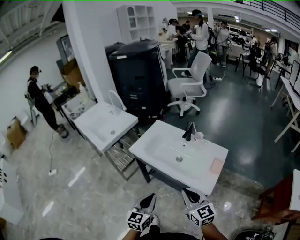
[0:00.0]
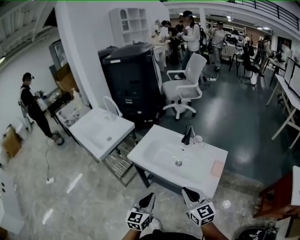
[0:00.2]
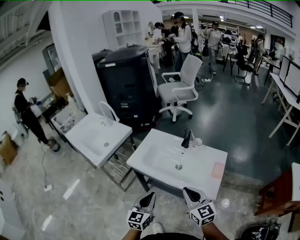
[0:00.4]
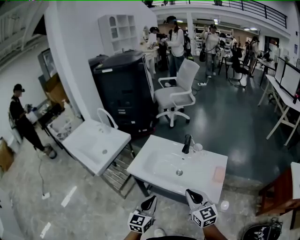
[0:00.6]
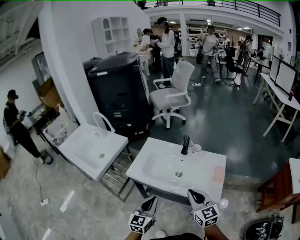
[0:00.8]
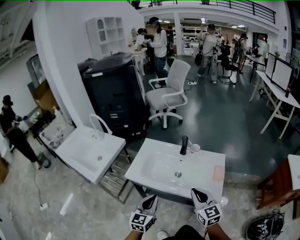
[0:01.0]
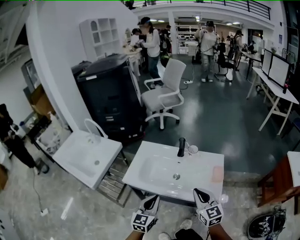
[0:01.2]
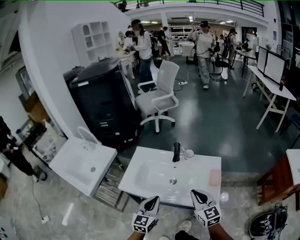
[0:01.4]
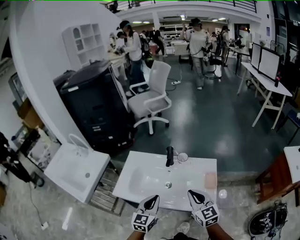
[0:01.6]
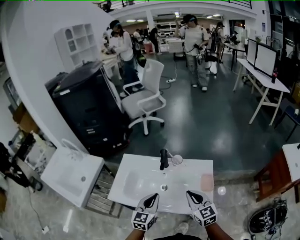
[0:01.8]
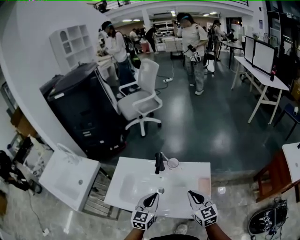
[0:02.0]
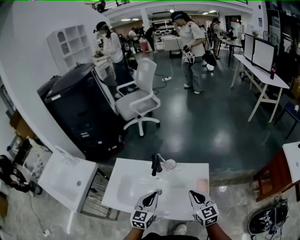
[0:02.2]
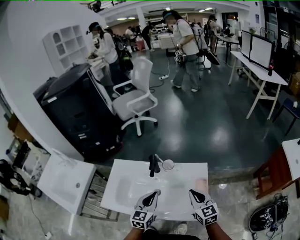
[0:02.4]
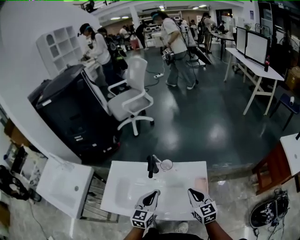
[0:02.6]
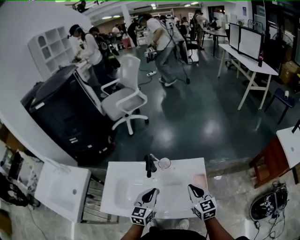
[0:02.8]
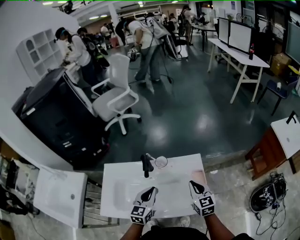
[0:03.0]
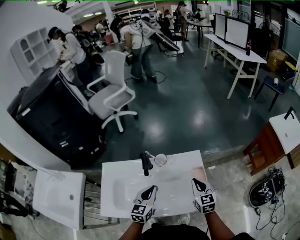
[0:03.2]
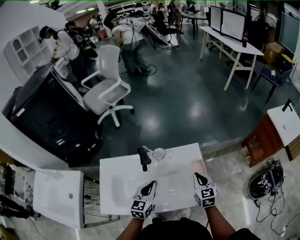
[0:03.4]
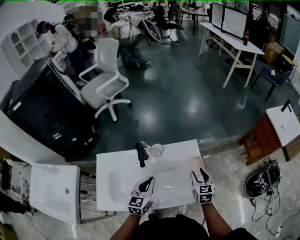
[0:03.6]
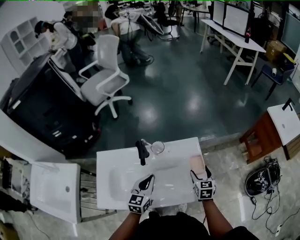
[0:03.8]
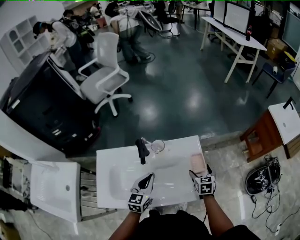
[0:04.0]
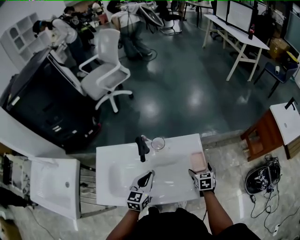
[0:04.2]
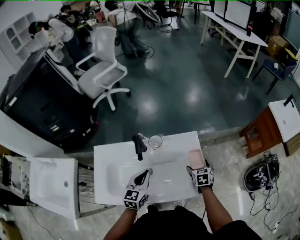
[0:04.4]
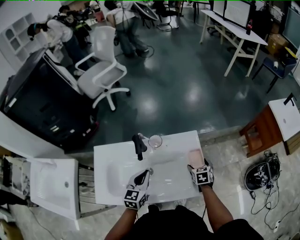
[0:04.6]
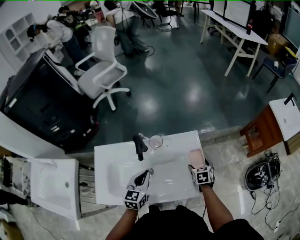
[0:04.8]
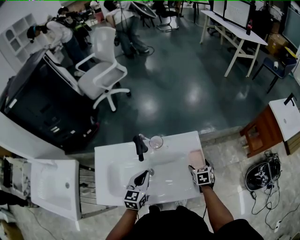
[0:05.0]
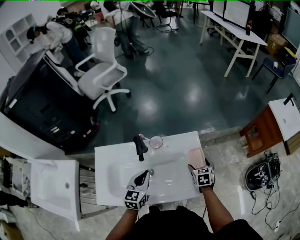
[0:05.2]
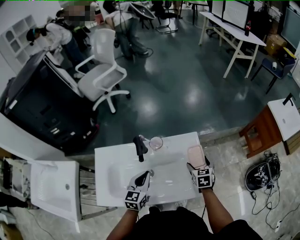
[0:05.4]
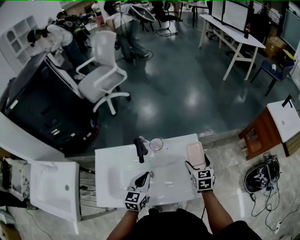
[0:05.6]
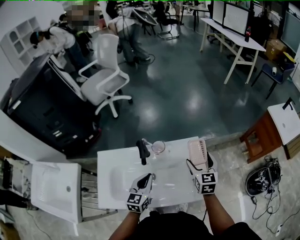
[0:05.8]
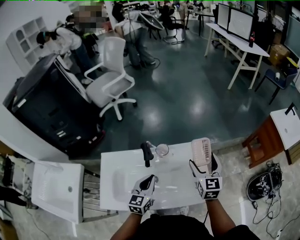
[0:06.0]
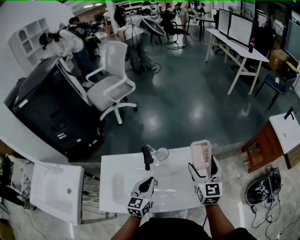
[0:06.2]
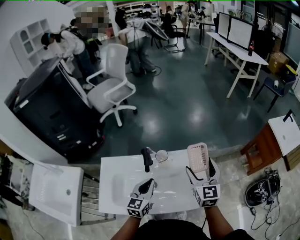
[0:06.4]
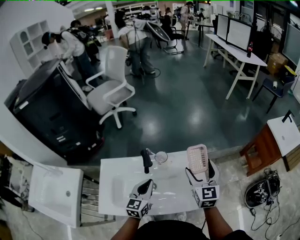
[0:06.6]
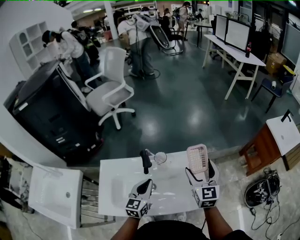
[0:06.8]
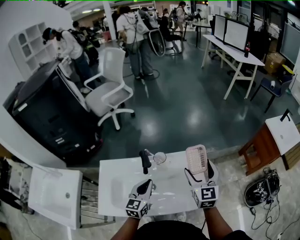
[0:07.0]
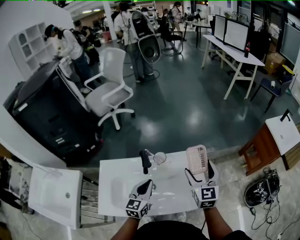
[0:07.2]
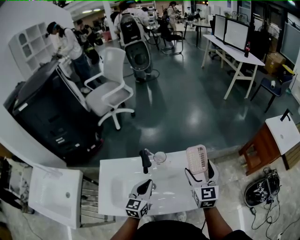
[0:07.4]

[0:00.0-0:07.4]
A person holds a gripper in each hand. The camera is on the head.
0:00.0 to 0:01.4: The two grippers go about 15 cm forward. The left gripper turns by about 20 degrees. Meanwhile the right gripper turns by roughly 20 degrees.
0:01.4 to 0:03.0: The right gripper shifts some 20 cm forward, to the right and downward, and changes its angle by approximately 20 degrees. The left gripper shifts about 20 cm forward and to the right.
0:03.0 to 0:04.4: The right gripper is displaced downward and to the right by some 20 cm, swivels approximately 30 degrees, and opens its fingers.
0:04.4 to 0:06.0: The right gripper moves upward, roughly 25 cm, and tilts its fingers roughly 40 degrees upward.
0:06.0 to 0:07.4: The grippers move only a little.

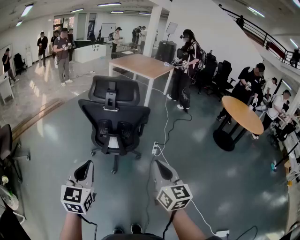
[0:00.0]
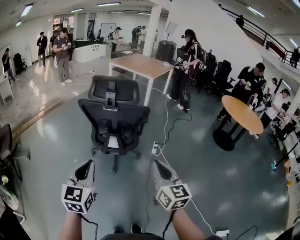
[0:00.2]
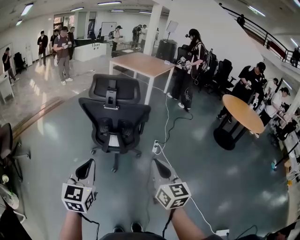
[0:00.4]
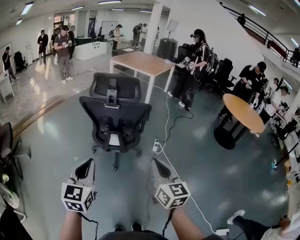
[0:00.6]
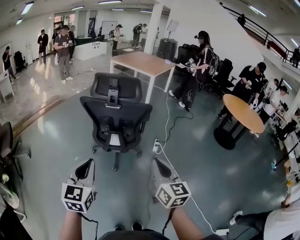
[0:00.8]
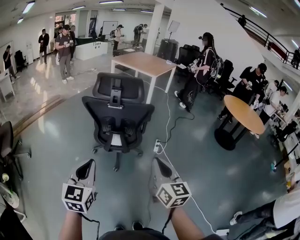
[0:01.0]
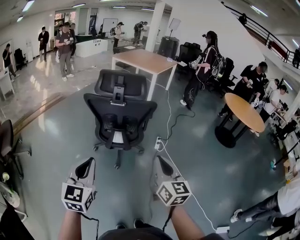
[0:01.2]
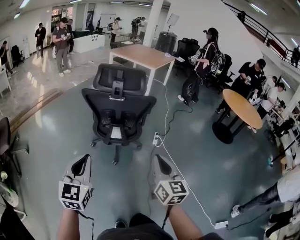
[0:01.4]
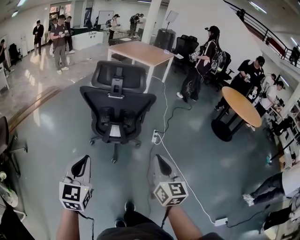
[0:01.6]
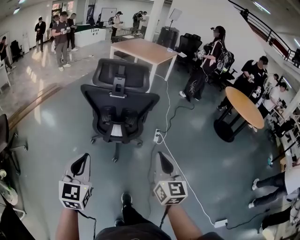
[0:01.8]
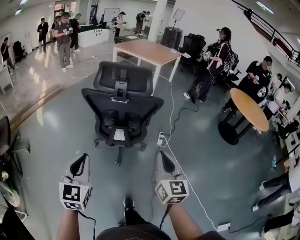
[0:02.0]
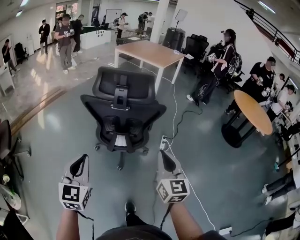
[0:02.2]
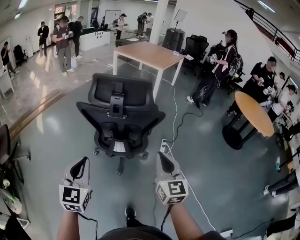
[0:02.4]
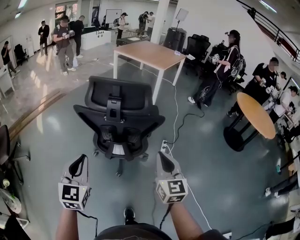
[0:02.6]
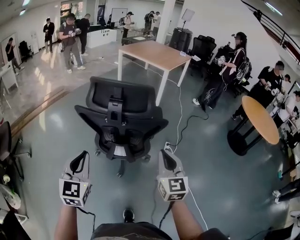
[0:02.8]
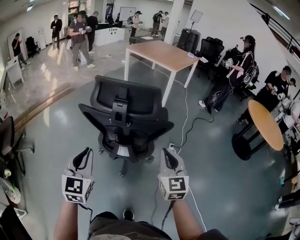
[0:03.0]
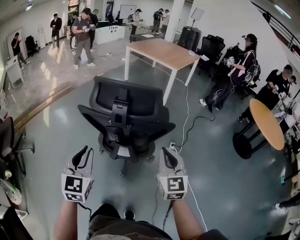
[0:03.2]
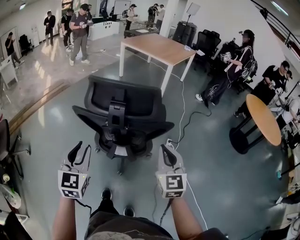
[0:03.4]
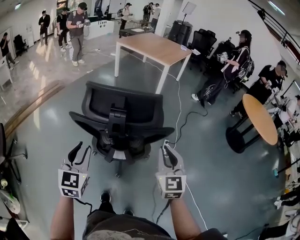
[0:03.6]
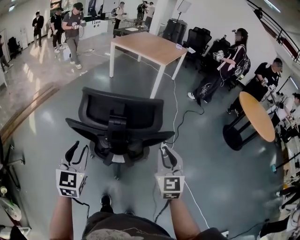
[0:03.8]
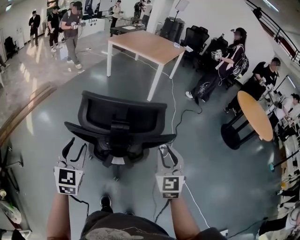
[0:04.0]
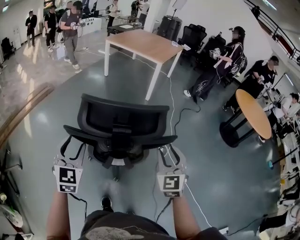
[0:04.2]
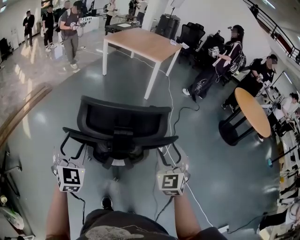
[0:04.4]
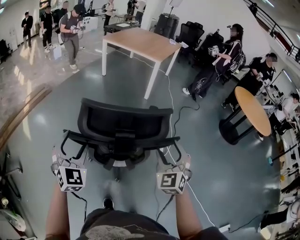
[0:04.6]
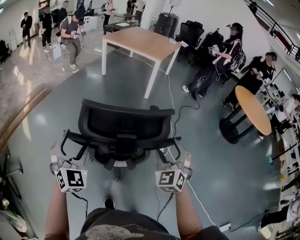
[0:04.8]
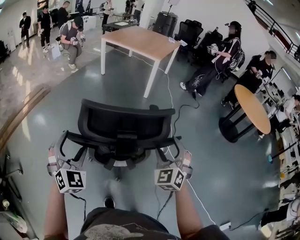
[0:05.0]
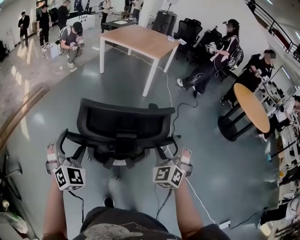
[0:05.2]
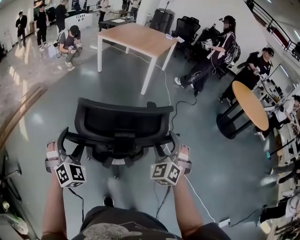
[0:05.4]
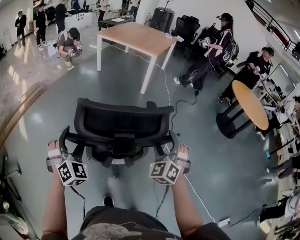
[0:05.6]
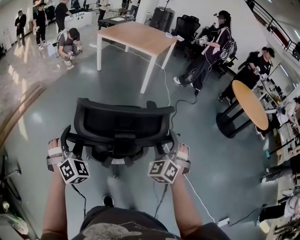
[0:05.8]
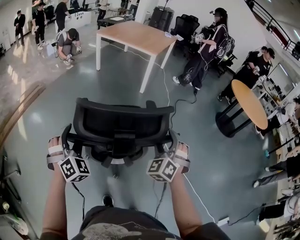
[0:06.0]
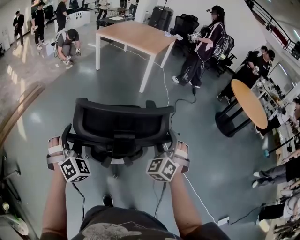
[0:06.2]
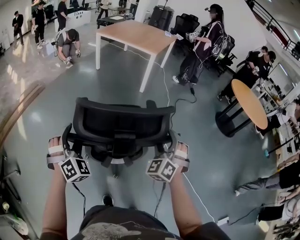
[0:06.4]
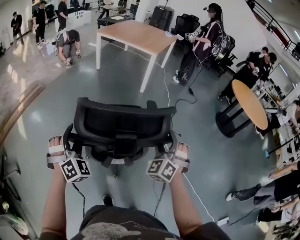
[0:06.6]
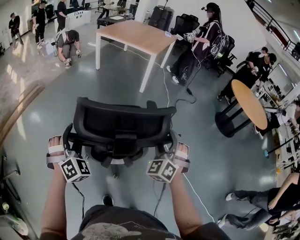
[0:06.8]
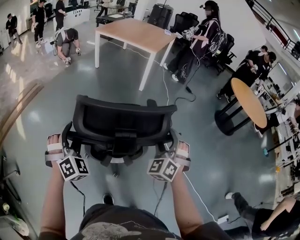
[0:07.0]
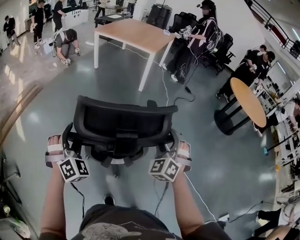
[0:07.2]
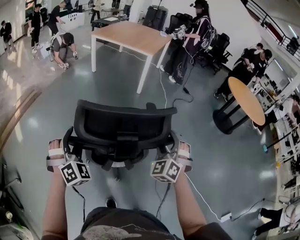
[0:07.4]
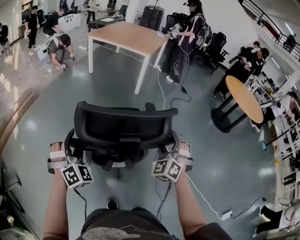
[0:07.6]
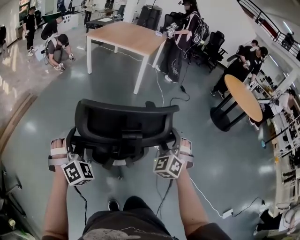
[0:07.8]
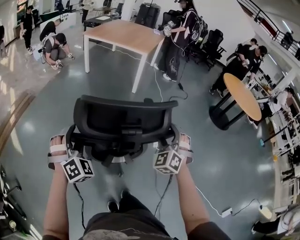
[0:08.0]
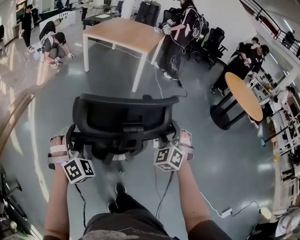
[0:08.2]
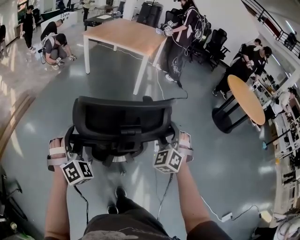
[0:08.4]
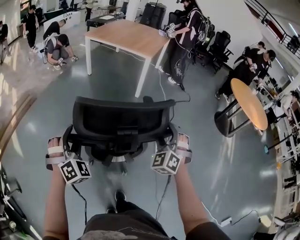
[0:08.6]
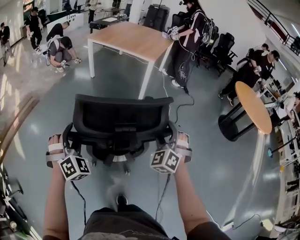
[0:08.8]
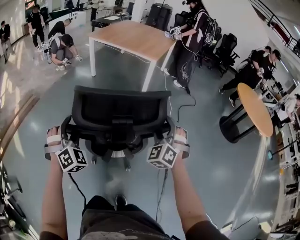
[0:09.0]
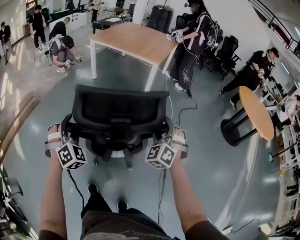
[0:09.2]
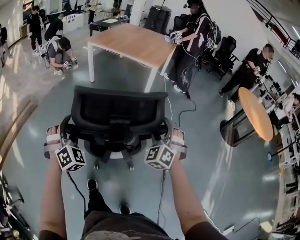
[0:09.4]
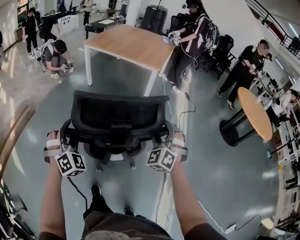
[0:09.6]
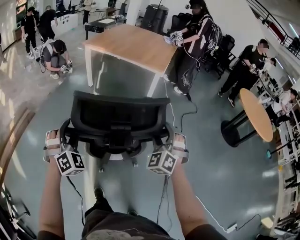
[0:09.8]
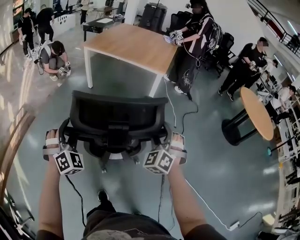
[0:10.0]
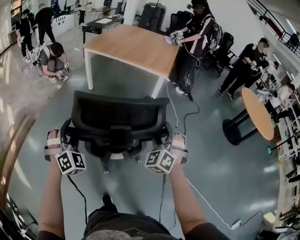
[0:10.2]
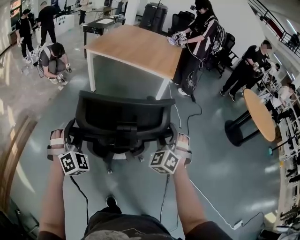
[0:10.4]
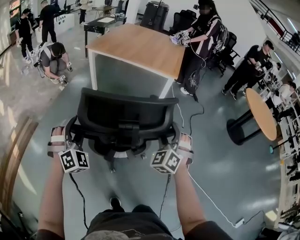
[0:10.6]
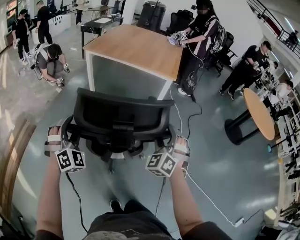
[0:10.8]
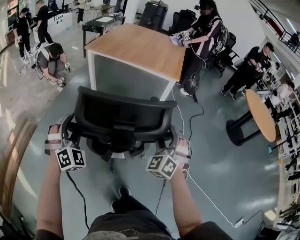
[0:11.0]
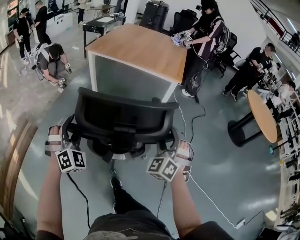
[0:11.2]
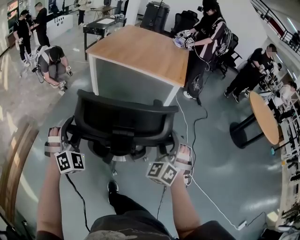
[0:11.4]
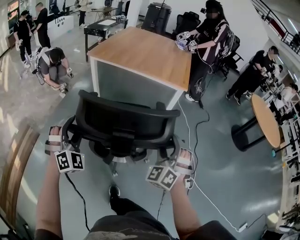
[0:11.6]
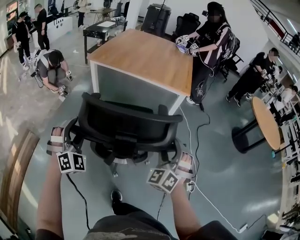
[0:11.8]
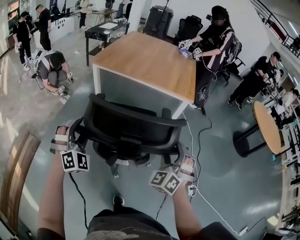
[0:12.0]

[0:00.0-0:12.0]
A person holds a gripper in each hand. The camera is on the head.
0:00.0 to 0:01.6: The left gripper changes place by approximately 5 cm.
0:01.6 to 0:03.0: The two grippers go some 25 cm forward.
0:03.0 to 0:04.4: The left gripper travels forward by roughly 20 cm, and opens up; the right gripper is displaced forward by approximately 10 cm, changes its angle by about 30 degrees, and opens.
0:04.4 to 0:06.0: Both grippers move forward, roughly 5 cm. The left gripper turns by roughly 30 degrees. The right gripper swivels approximately 30 degrees.
0:06.0 to 0:07.6: The grippers move only a little.
0:07.6 to 0:09.0: The grippers both shift forward by approximately 20 cm.
0:09.0 to 0:10.4: The two grippers go some 30 cm forward and to the left.
0:10.4 to 0:12.0: The right gripper is displaced to the left and forward by about 20 cm; the left gripper travels forward and to the left by some 30 cm.

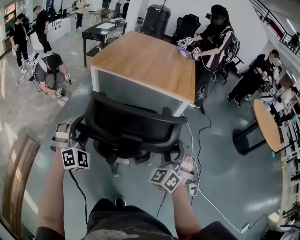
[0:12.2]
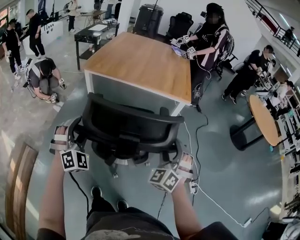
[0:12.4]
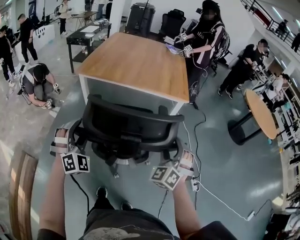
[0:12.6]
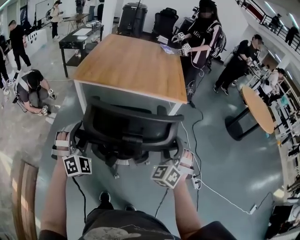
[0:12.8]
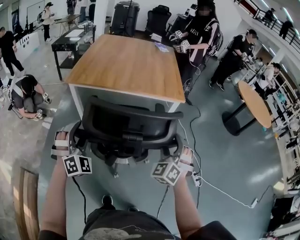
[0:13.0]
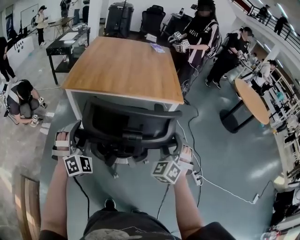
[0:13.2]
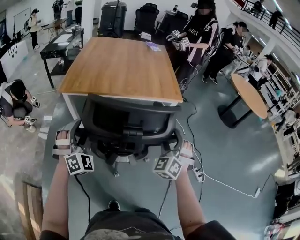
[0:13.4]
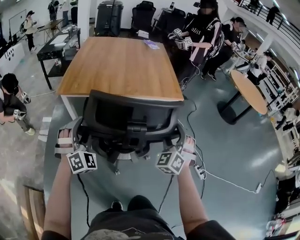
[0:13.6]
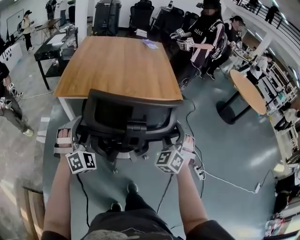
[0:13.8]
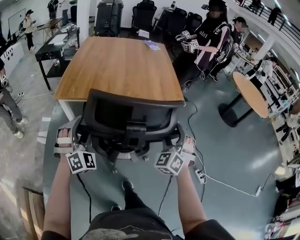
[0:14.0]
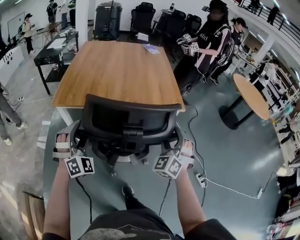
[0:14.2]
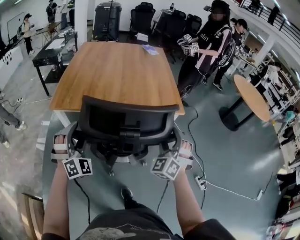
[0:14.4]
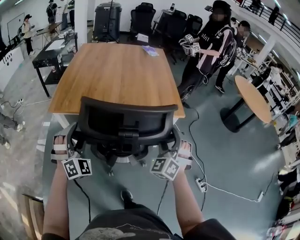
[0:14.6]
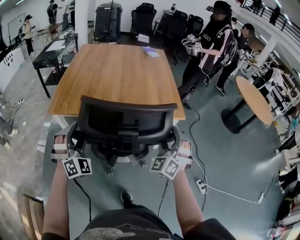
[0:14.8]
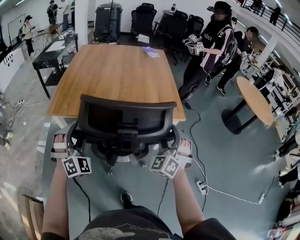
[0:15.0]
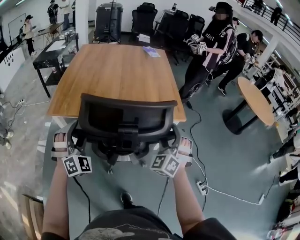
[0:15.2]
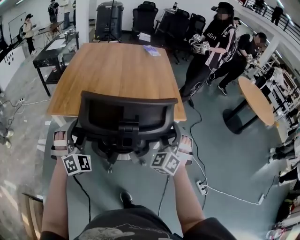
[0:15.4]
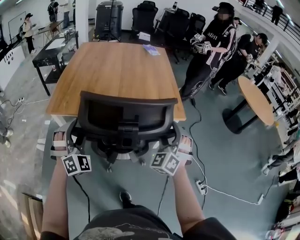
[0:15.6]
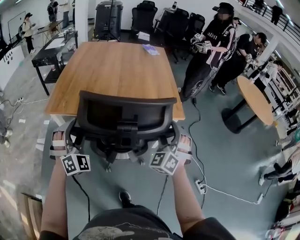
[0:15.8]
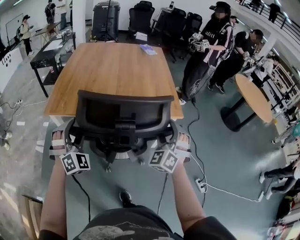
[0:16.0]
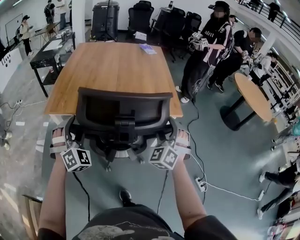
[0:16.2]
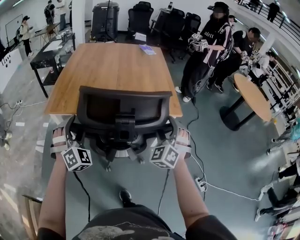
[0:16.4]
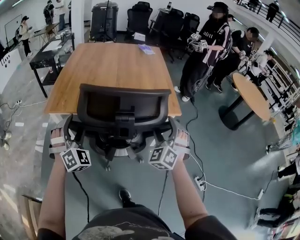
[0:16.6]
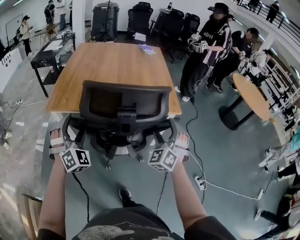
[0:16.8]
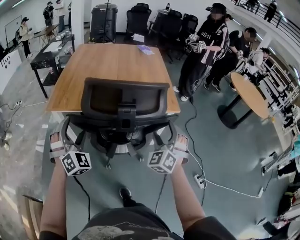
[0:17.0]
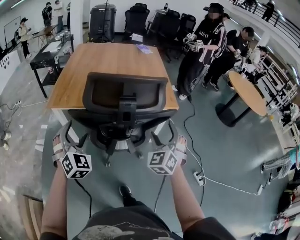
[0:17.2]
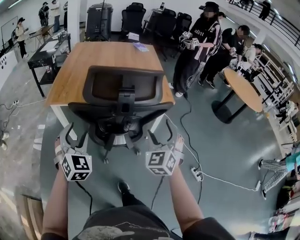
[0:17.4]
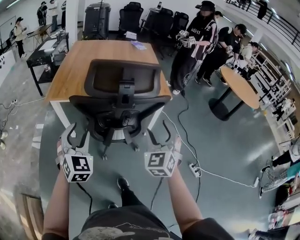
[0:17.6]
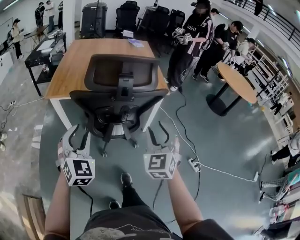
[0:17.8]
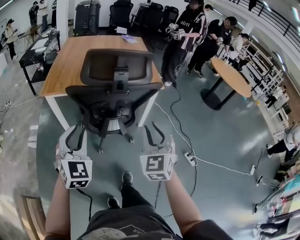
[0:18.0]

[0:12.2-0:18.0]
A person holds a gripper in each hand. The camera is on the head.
0:12.2 to 0:13.6: Both grippers move forward, roughly 20 cm.
0:13.6 to 0:15.0: The grippers both shift forward by some 15 cm.
0:15.0 to 0:16.6: There are only small adjustments of the grippers.
0:16.6 to 0:18.0: The two grippers go some 25 cm backward. The right gripper rotates approximately 30 degrees, and closes up. Meanwhile the left gripper swivels some 40 degrees, and closes.
